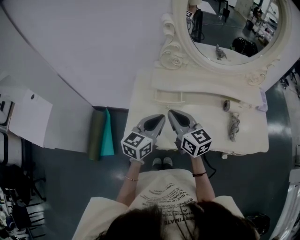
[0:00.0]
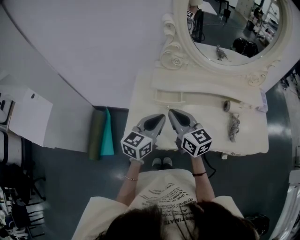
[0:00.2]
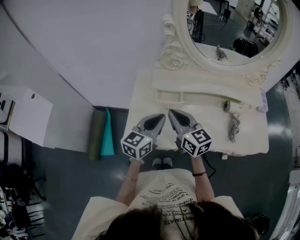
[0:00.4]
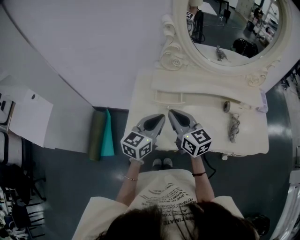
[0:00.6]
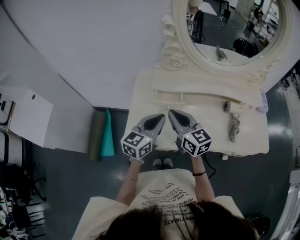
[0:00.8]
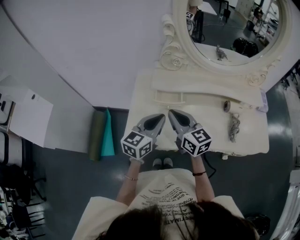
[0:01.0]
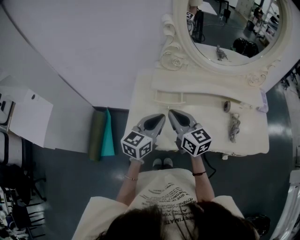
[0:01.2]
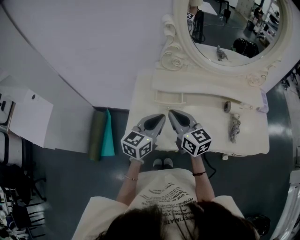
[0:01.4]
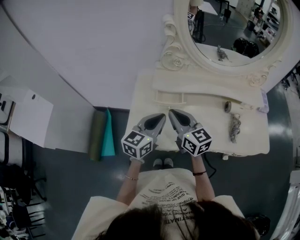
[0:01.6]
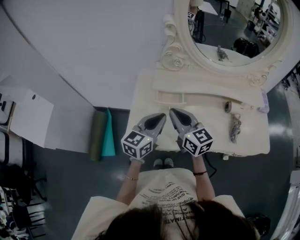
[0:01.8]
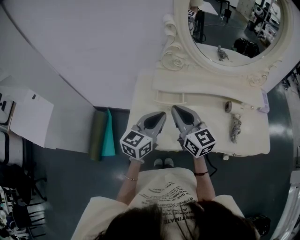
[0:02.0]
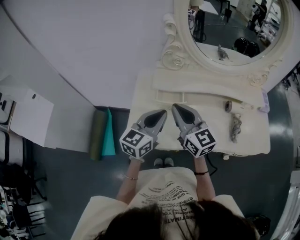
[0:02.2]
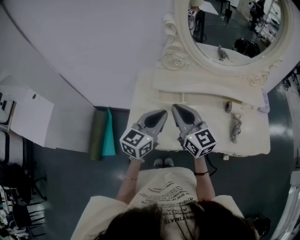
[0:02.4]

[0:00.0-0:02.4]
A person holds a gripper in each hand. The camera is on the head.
0:00.0 to 0:01.2: Both grippers stay put.
0:01.2 to 0:02.4: There are only small adjustments of the grippers.

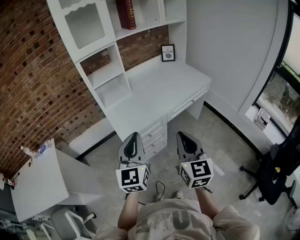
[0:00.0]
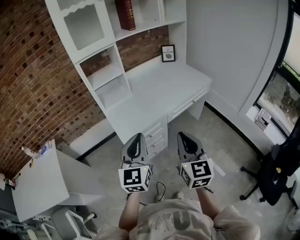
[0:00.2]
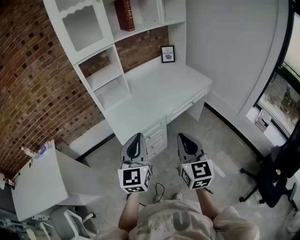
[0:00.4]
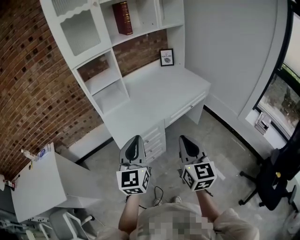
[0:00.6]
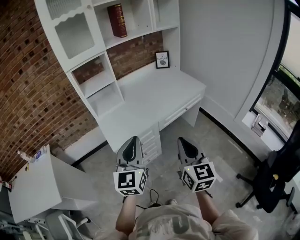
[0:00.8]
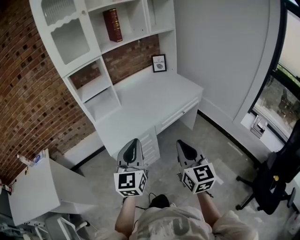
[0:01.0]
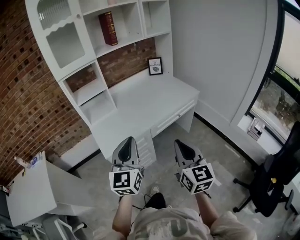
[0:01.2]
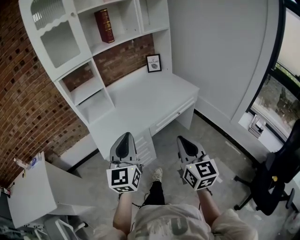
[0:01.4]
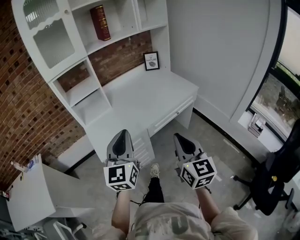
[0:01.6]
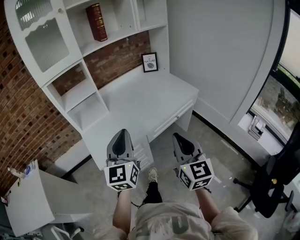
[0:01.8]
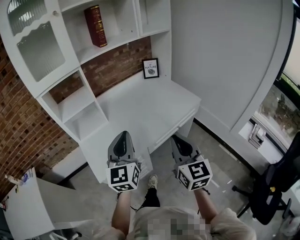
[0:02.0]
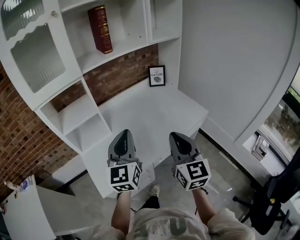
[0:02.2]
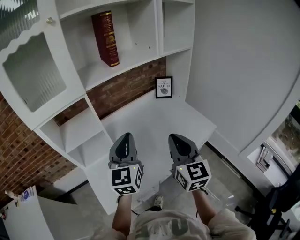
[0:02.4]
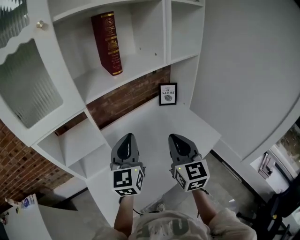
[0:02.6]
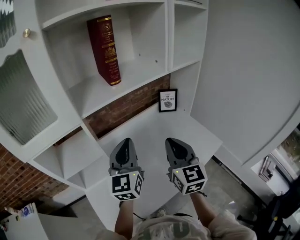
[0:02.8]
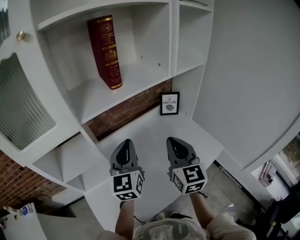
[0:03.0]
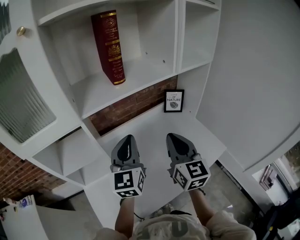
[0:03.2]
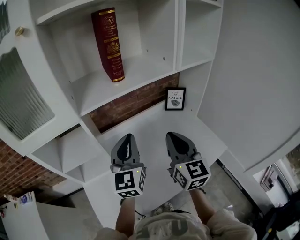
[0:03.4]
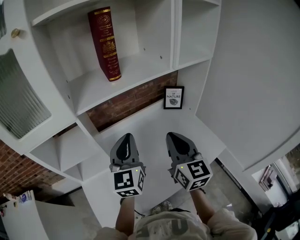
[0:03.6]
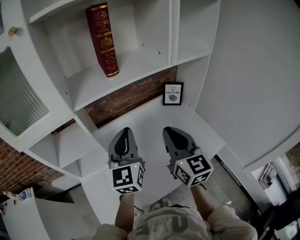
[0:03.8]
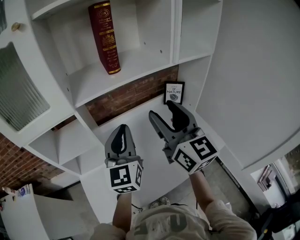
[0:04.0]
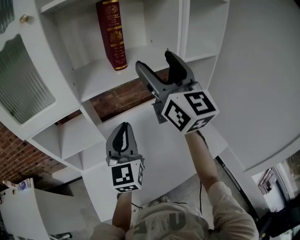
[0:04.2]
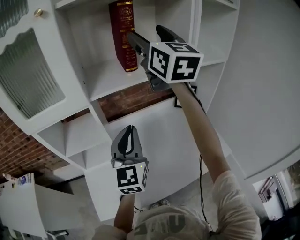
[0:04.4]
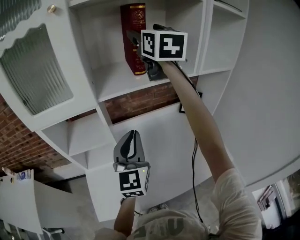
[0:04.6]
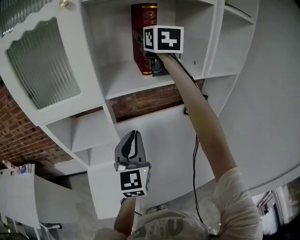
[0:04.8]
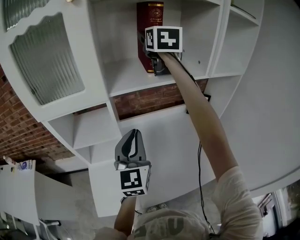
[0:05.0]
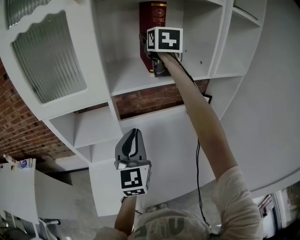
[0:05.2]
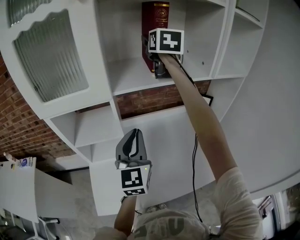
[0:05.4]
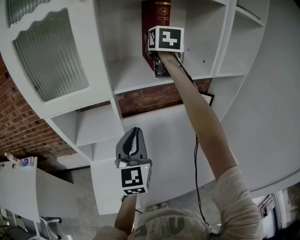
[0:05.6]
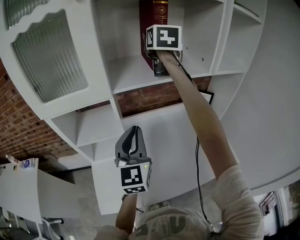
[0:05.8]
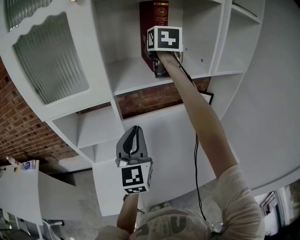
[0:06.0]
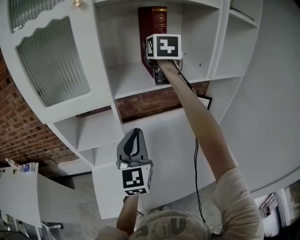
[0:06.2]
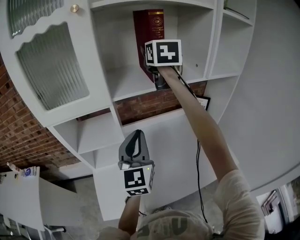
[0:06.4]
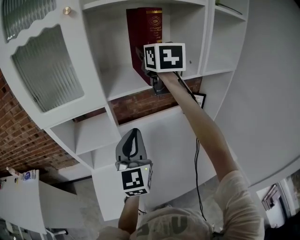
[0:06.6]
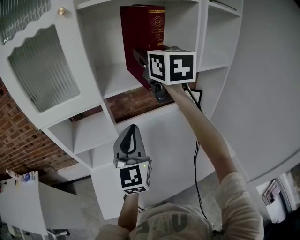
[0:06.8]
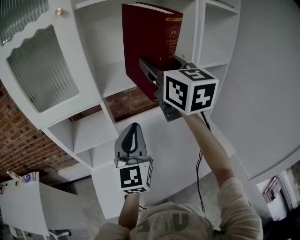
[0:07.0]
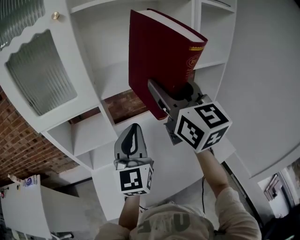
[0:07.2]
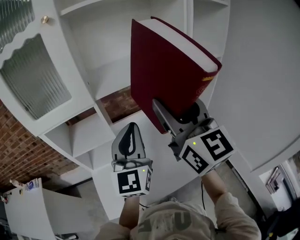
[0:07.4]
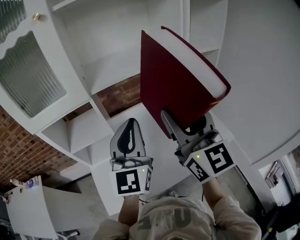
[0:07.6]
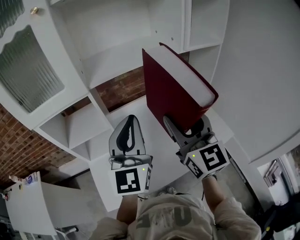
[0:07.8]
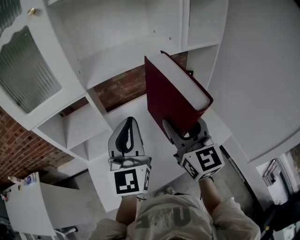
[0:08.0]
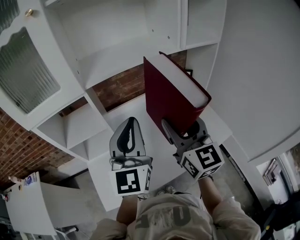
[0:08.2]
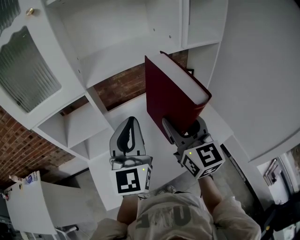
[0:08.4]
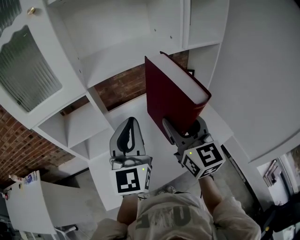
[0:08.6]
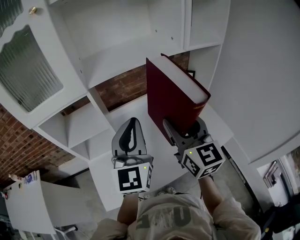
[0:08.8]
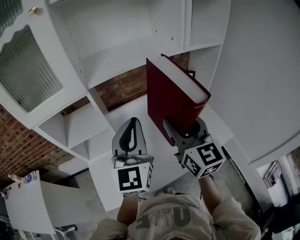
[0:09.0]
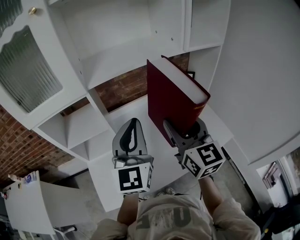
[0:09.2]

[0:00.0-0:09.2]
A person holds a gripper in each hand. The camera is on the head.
0:00.0 to 0:01.6: Both grippers move to the right and forward, some 15 cm.
0:01.6 to 0:03.0: The two grippers travel together, forward, about 50 cm.
0:03.0 to 0:04.6: The right gripper goes roughly 35 cm upward and forward, swivels approximately 20 degrees, and opens its fingers.
0:04.6 to 0:06.2: The right gripper goes approximately 5 cm downward.
0:06.2 to 0:07.6: The left gripper heads backward and upward, covering some 10 cm, while the right gripper shifts roughly 35 cm backward, and swivels about 20 degrees.
0:07.6 to 0:09.2: The right gripper heads downward, covering some 10 cm.

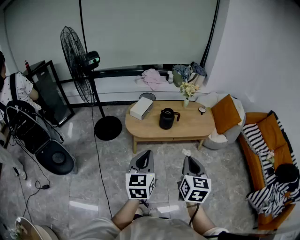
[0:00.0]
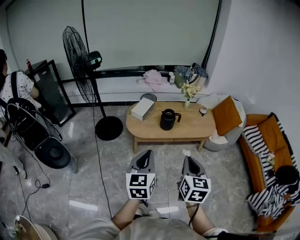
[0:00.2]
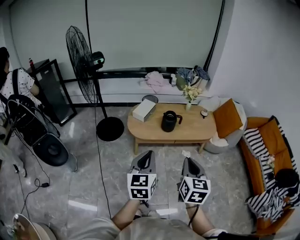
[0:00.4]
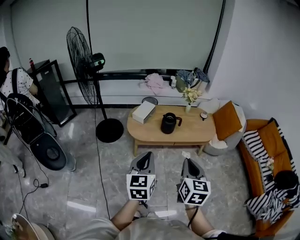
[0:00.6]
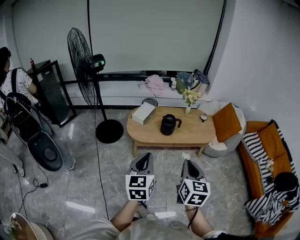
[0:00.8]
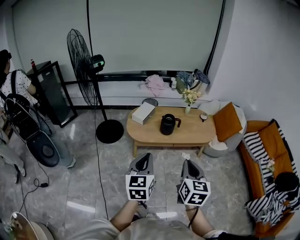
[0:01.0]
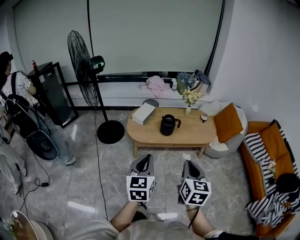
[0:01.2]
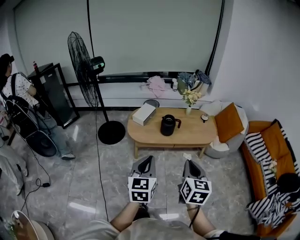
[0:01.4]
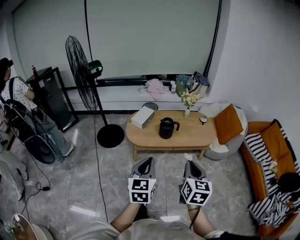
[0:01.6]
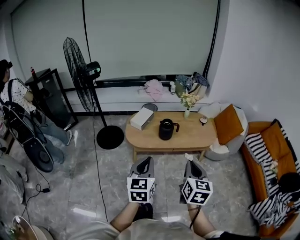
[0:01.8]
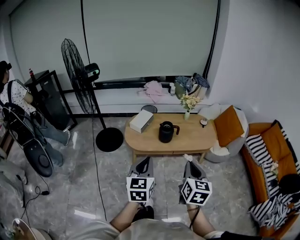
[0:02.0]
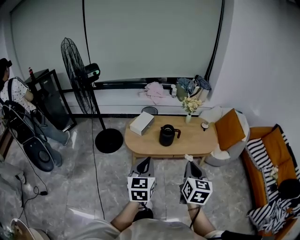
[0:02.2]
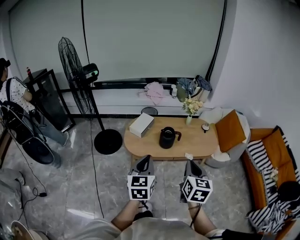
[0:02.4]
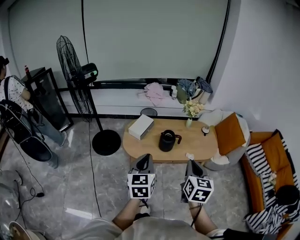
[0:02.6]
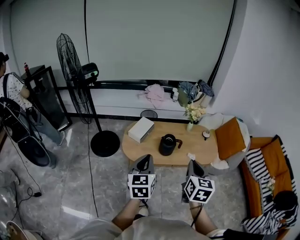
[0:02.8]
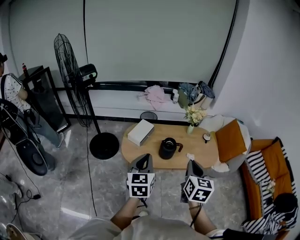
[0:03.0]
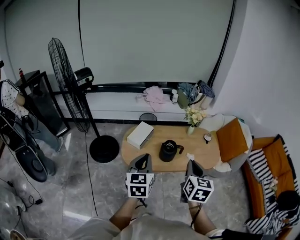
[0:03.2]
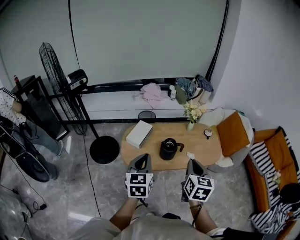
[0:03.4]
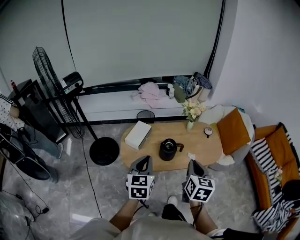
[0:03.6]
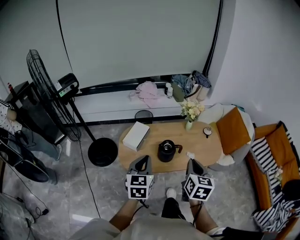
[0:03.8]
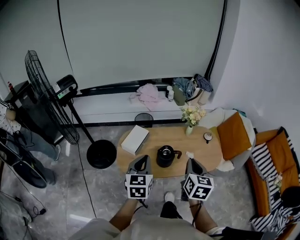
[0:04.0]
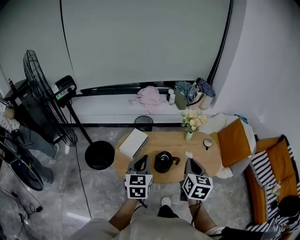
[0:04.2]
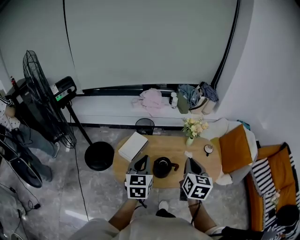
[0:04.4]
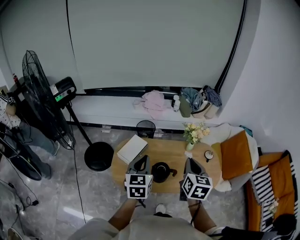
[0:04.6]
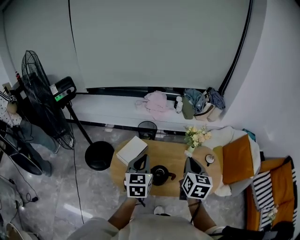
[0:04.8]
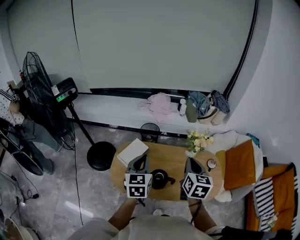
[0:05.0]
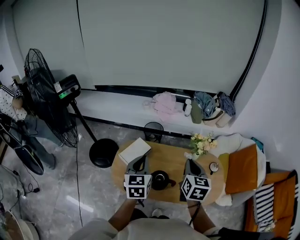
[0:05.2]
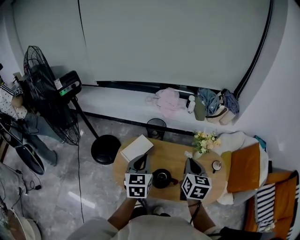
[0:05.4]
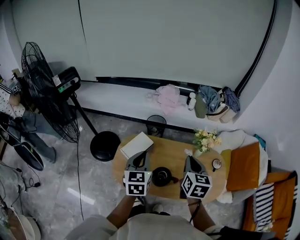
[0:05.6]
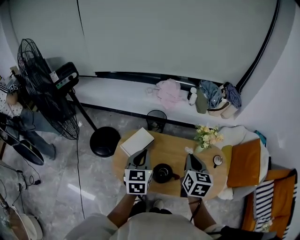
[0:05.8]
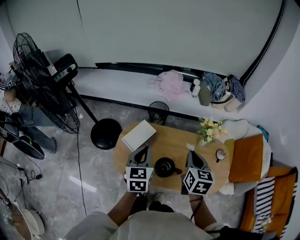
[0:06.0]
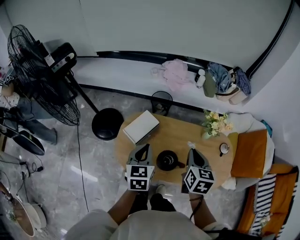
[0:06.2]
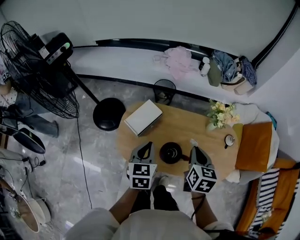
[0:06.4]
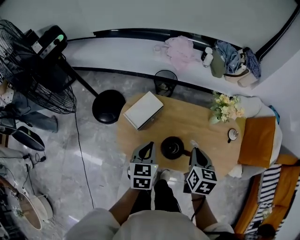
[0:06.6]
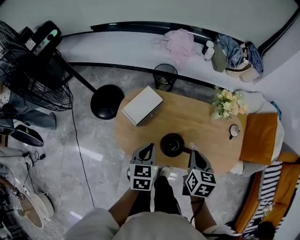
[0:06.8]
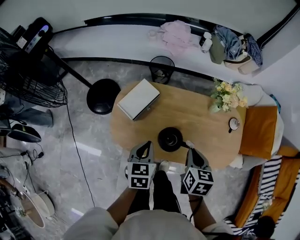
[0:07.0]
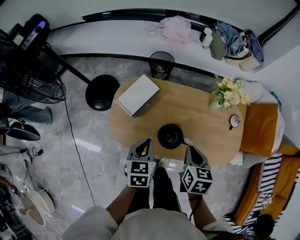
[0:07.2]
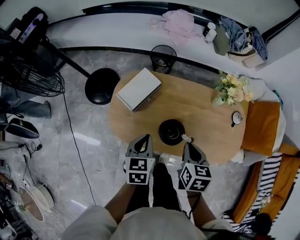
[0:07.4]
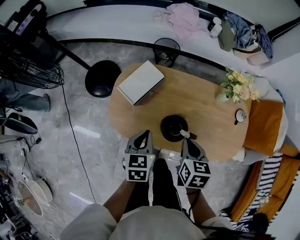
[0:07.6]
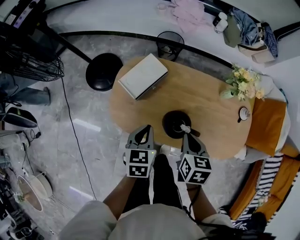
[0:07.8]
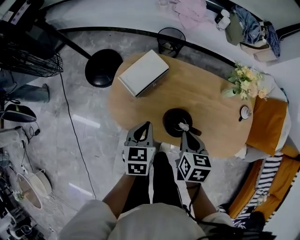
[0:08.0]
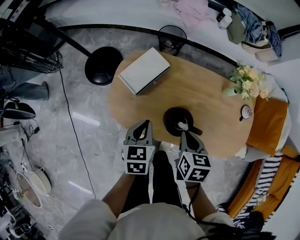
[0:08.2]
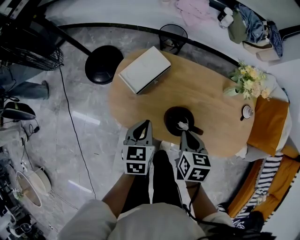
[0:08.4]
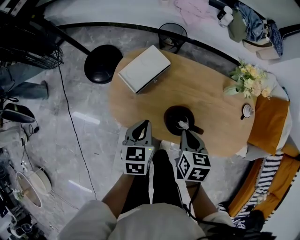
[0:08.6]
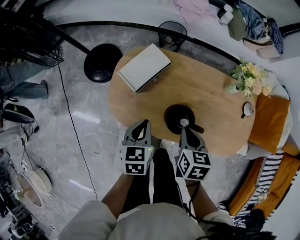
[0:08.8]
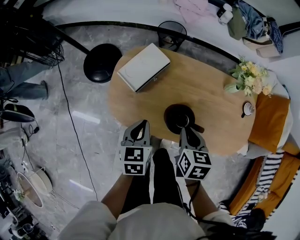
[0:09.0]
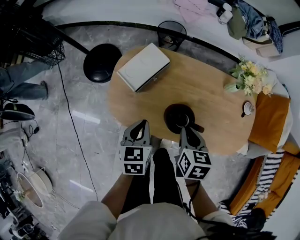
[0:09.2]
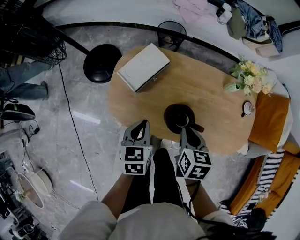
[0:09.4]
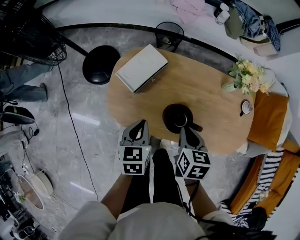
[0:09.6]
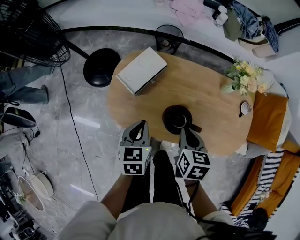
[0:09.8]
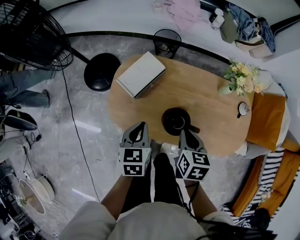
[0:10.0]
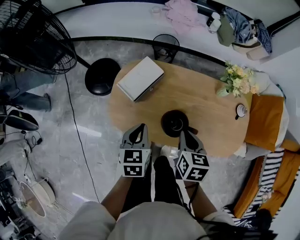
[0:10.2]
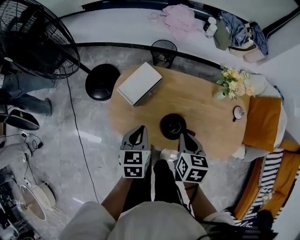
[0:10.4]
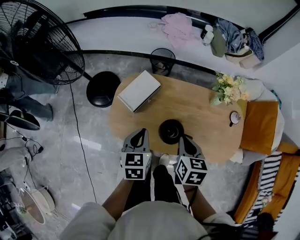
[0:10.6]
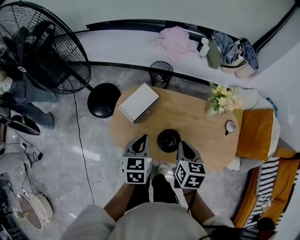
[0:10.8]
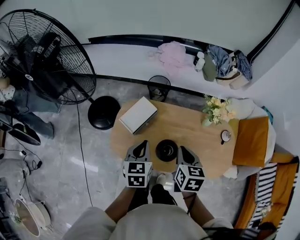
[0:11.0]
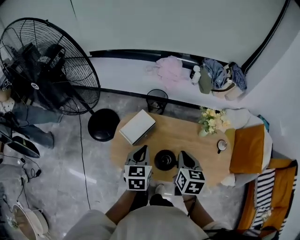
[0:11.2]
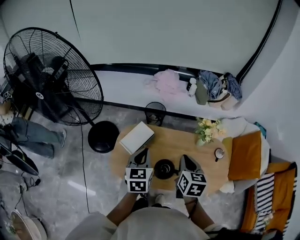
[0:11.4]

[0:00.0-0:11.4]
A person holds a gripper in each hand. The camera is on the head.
0:00.0 to 0:01.4: The grippers stay close to where they were, moving slightly.
0:01.4 to 0:02.8: The grippers both shift forward by roughly 20 cm.
0:02.8 to 0:04.2: Both grippers travel together forward, some 20 cm.
0:04.2 to 0:05.6: Both grippers travel together forward, approximately 15 cm.
0:05.6 to 0:07.2: The left gripper travels downward by some 20 cm, and changes its angle by about 20 degrees. Meanwhile the right gripper travels downward and backward by some 20 cm, and rotates some 20 degrees.
0:07.2 to 0:08.6: The left gripper shifts by roughly 5 cm. Meanwhile the right gripper travels downward and to the left by roughly 10 cm.
0:08.6 to 0:10.0: The grippers stay close to where they were, moving slightly.
0:10.0 to 0:11.4: The two grippers go roughly 20 cm upward and forward.

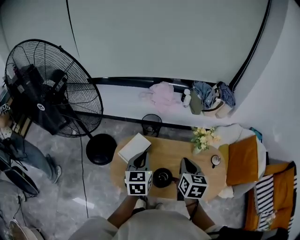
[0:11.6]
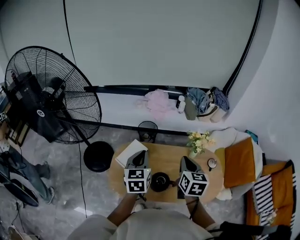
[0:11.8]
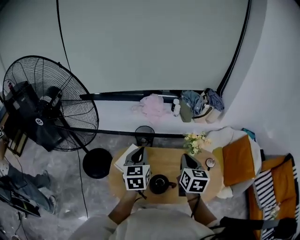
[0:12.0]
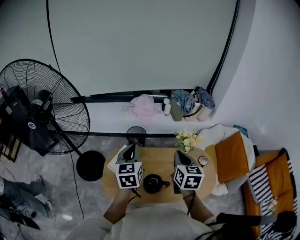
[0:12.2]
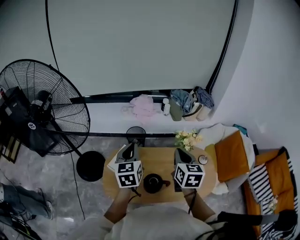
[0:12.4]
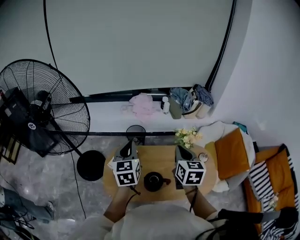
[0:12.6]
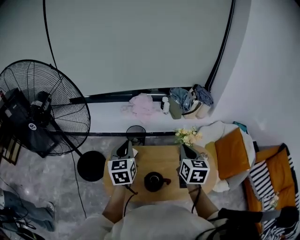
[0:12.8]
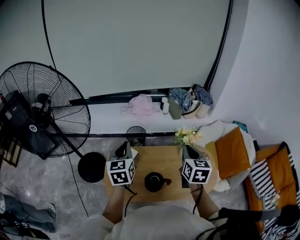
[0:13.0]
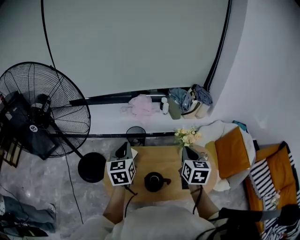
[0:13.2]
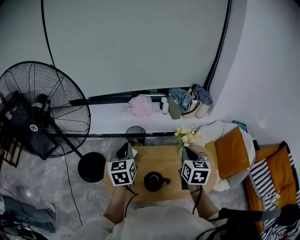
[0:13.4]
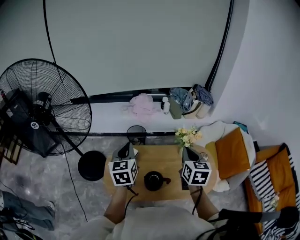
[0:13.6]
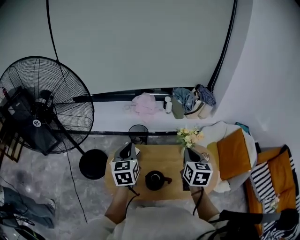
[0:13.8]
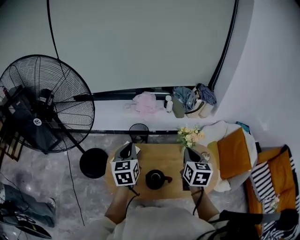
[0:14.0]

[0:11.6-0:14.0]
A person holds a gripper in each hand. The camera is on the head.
0:11.6 to 0:12.8: The left gripper shifts approximately 10 cm upward. Meanwhile the right gripper travels upward and to the right by about 10 cm.
0:12.8 to 0:14.0: The grippers make only small movements.
